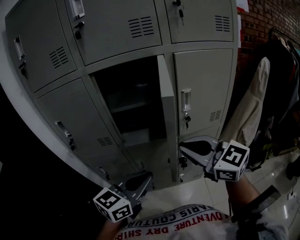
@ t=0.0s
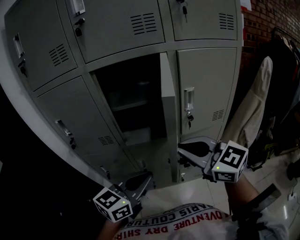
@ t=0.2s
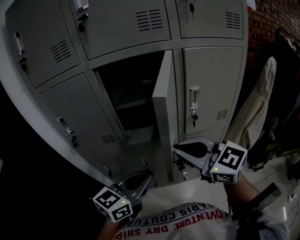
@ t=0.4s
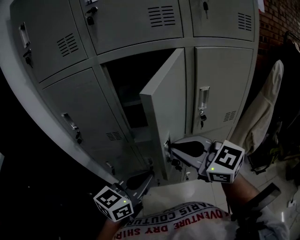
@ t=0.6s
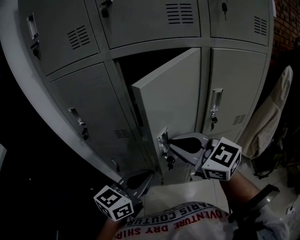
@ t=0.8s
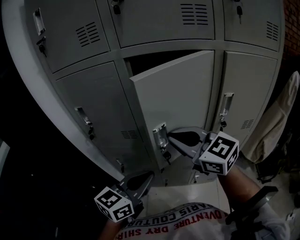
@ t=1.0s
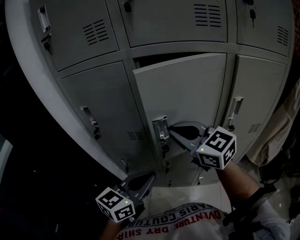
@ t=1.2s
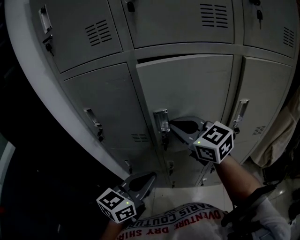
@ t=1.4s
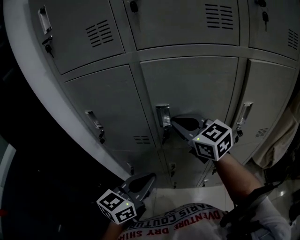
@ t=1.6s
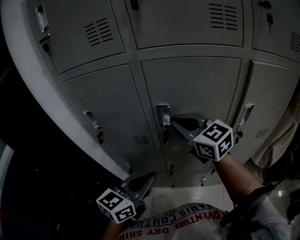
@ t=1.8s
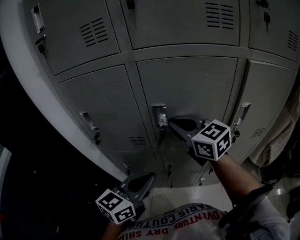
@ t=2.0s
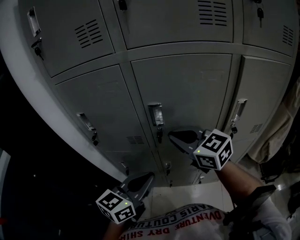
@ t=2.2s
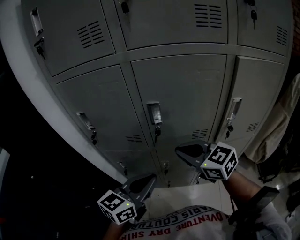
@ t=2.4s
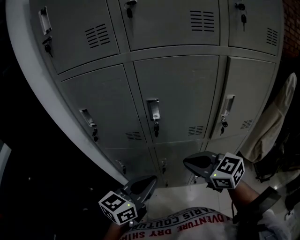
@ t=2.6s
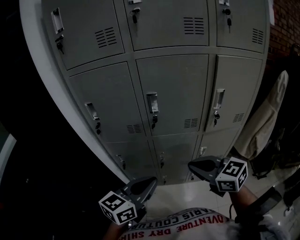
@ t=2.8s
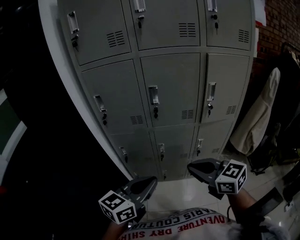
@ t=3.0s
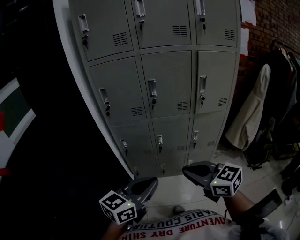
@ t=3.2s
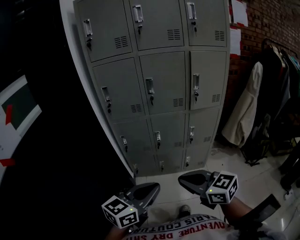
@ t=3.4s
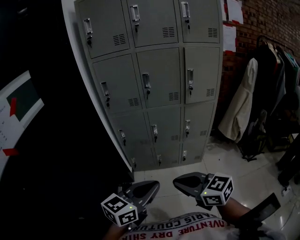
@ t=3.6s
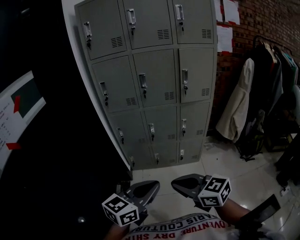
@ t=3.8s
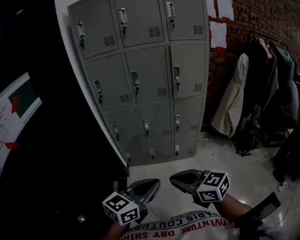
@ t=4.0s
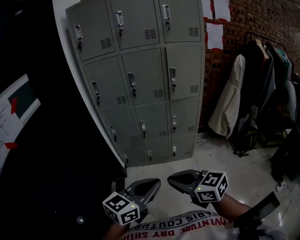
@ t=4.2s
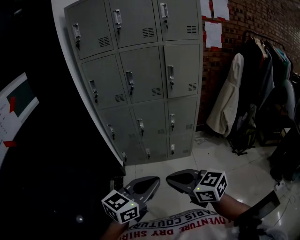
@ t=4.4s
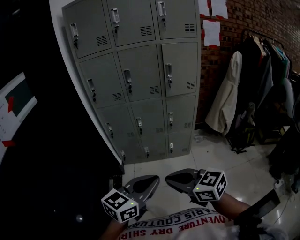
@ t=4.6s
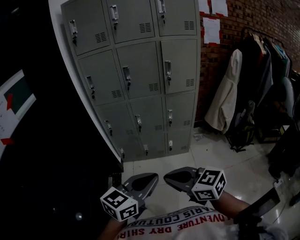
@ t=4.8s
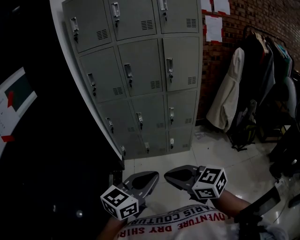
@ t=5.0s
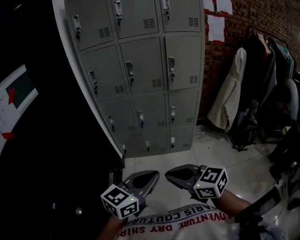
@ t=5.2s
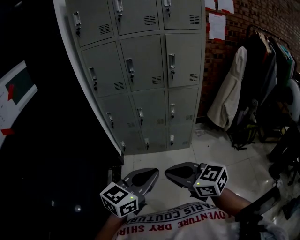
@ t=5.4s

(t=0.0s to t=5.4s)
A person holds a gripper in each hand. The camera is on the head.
t=0.0s - t=1.4s: The right gripper goes roughly 25 cm forward and to the left. Meanwhile the left gripper travels to the left and forward by some 15 cm.
t=1.4s - t=2.8s: The right gripper heads backward and downward, covering some 20 cm. The left gripper goes about 10 cm backward.
t=2.8s - t=4.0s: Both grippers move backward, approximately 40 cm.
t=4.0s - t=5.4s: The grippers stay close to where they were, moving slightly.

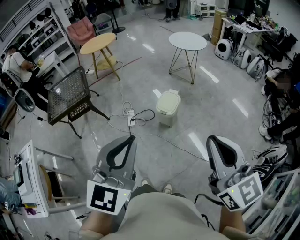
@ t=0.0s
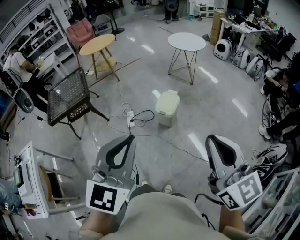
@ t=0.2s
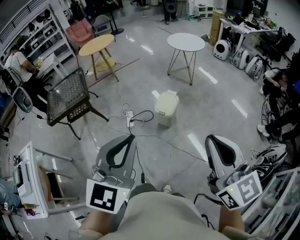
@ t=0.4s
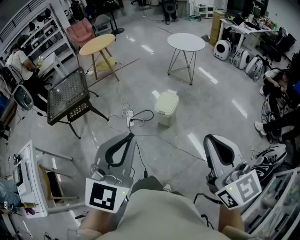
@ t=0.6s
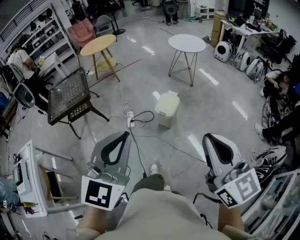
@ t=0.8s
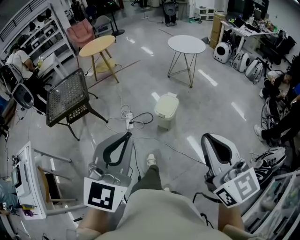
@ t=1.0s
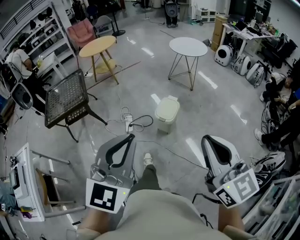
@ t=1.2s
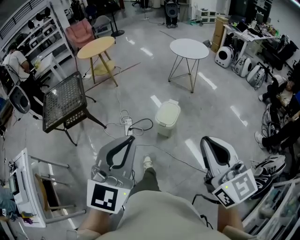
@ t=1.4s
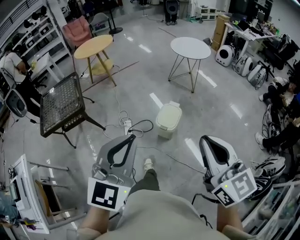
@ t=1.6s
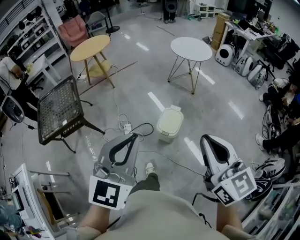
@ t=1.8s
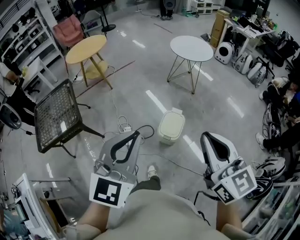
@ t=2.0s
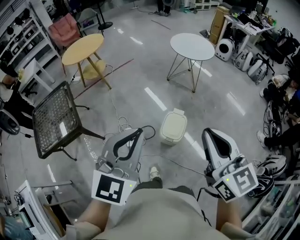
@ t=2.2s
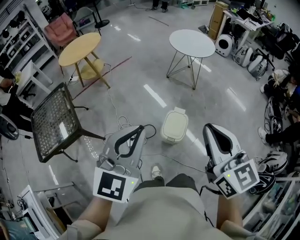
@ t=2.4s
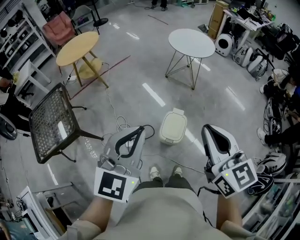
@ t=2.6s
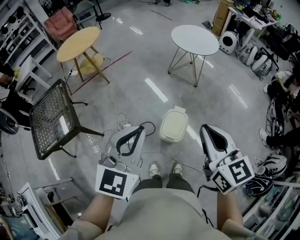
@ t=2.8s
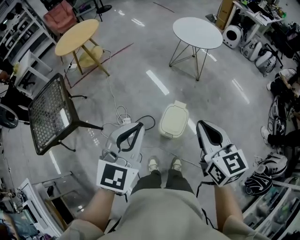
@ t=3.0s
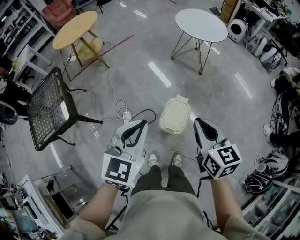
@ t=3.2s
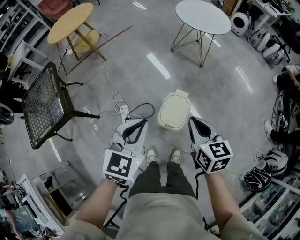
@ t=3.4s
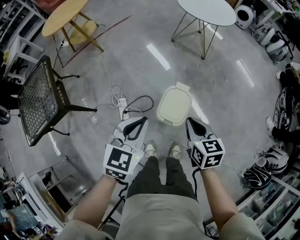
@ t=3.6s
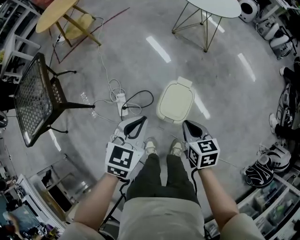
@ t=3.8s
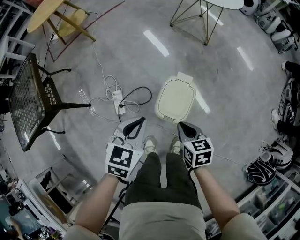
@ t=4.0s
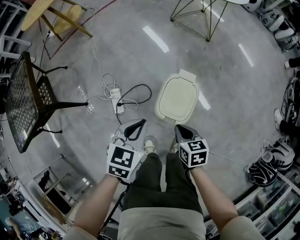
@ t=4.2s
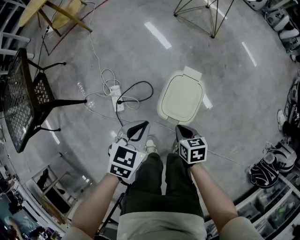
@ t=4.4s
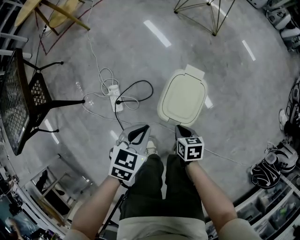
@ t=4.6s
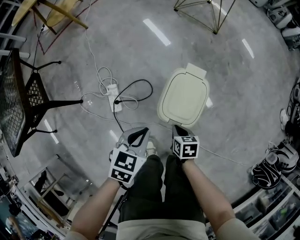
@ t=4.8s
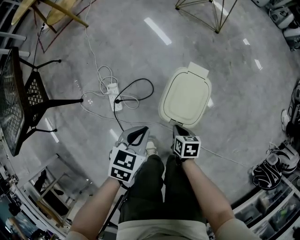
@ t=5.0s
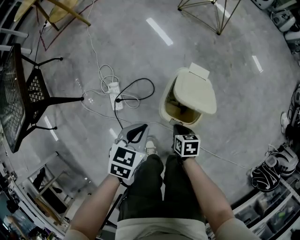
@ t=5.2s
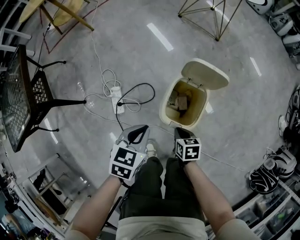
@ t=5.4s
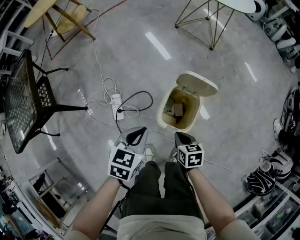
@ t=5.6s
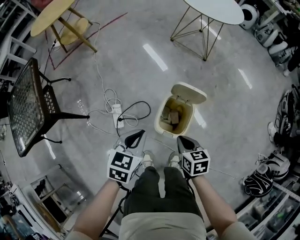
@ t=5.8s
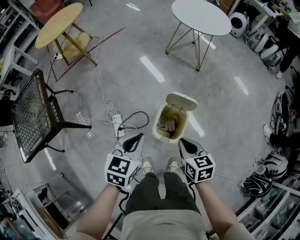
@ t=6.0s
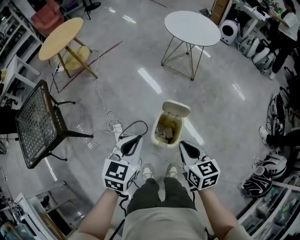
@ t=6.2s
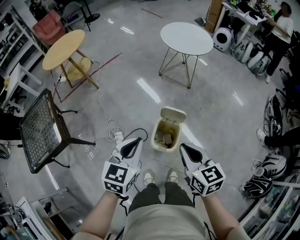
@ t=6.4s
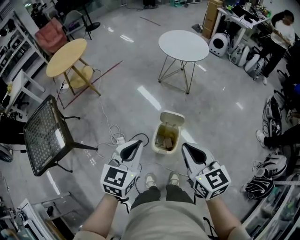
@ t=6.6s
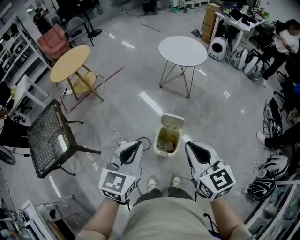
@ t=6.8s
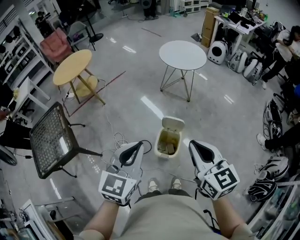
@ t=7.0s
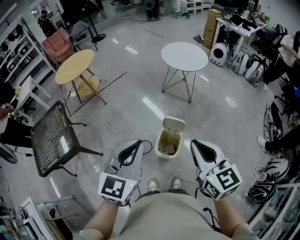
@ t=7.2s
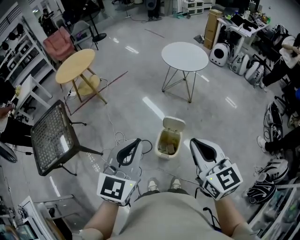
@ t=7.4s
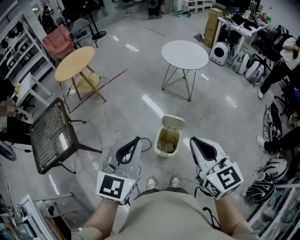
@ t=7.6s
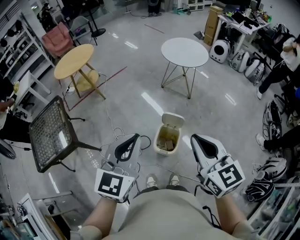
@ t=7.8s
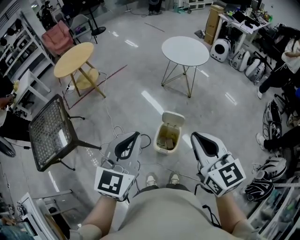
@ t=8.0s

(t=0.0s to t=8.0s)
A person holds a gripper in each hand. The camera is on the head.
t=0.0s - t=1.6s: Both grippers move forward, approximately 20 cm.
t=1.6s - t=3.2s: Both grippers travel together forward and downward, some 40 cm. The right gripper turns by about 30 degrees.
t=3.2s - t=4.8s: Both grippers travel together downward, some 50 cm. The right gripper tips its fingers downward by approximately 40 degrees. Meanwhile the left gripper changes its angle by some 30 degrees.
t=4.8s - t=6.4s: The grippers both shift upward by about 50 cm. The left gripper changes its angle by approximately 20 degrees. The right gripper tips its fingers upward by approximately 30 degrees.
t=6.4s - t=8.0s: Both grippers move upward, about 20 cm.

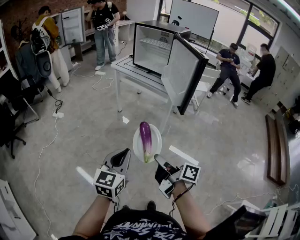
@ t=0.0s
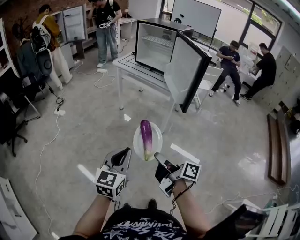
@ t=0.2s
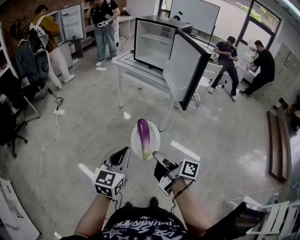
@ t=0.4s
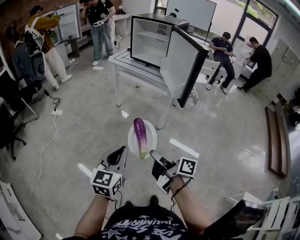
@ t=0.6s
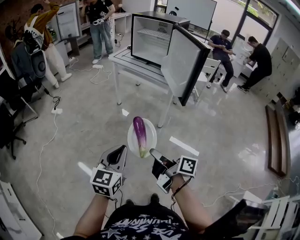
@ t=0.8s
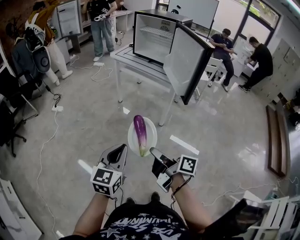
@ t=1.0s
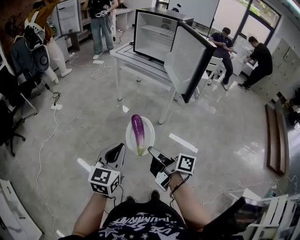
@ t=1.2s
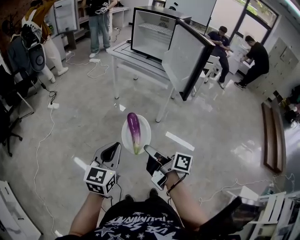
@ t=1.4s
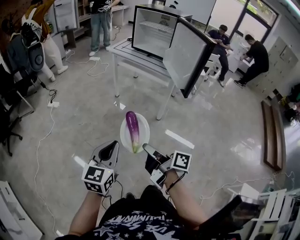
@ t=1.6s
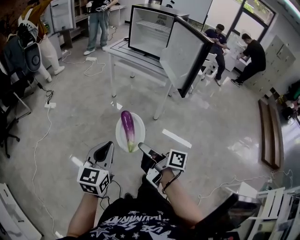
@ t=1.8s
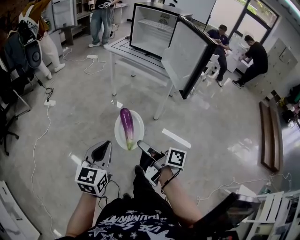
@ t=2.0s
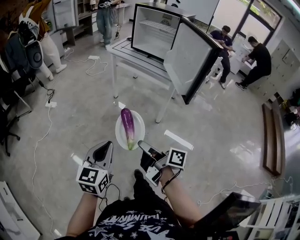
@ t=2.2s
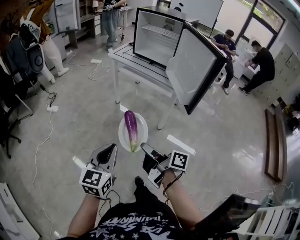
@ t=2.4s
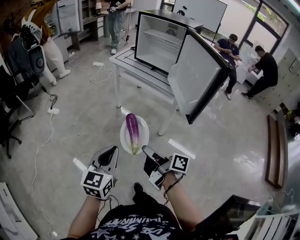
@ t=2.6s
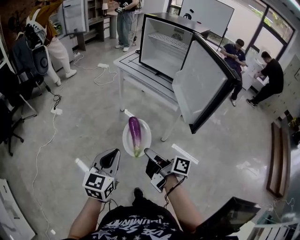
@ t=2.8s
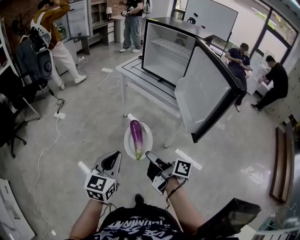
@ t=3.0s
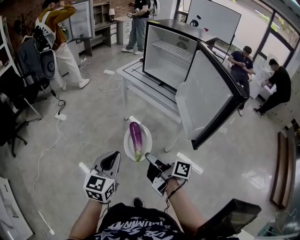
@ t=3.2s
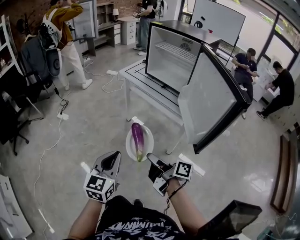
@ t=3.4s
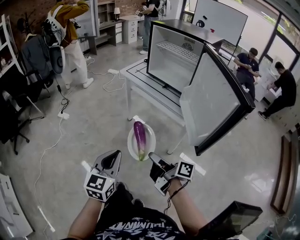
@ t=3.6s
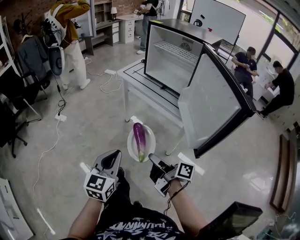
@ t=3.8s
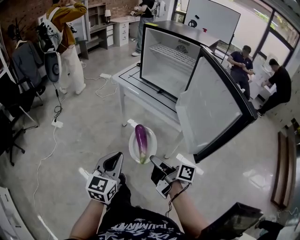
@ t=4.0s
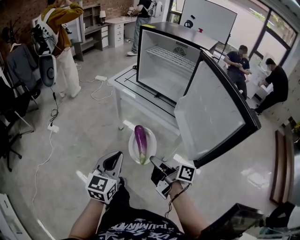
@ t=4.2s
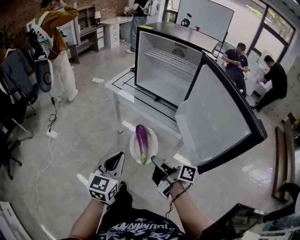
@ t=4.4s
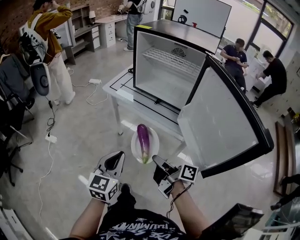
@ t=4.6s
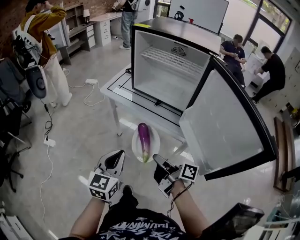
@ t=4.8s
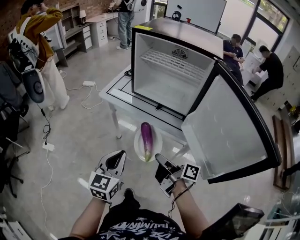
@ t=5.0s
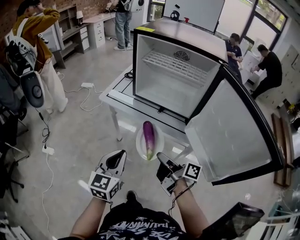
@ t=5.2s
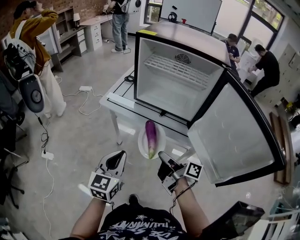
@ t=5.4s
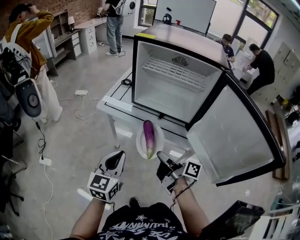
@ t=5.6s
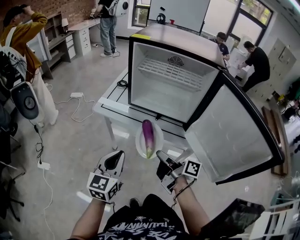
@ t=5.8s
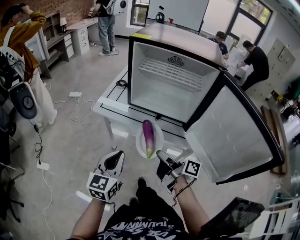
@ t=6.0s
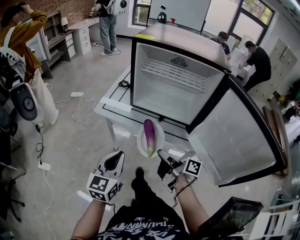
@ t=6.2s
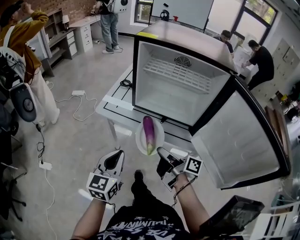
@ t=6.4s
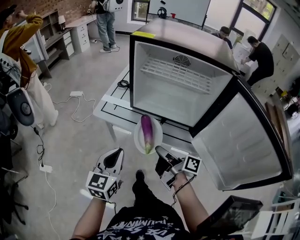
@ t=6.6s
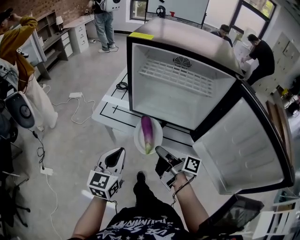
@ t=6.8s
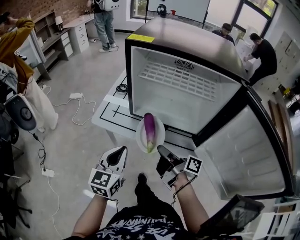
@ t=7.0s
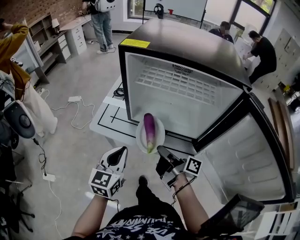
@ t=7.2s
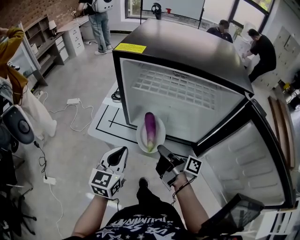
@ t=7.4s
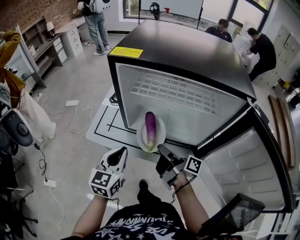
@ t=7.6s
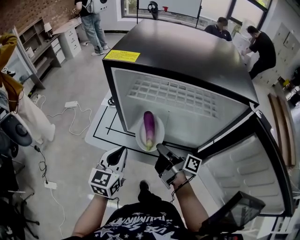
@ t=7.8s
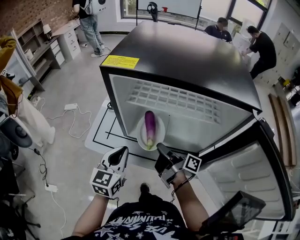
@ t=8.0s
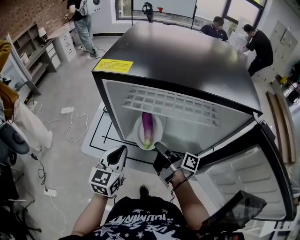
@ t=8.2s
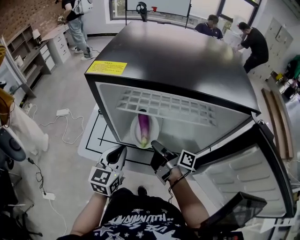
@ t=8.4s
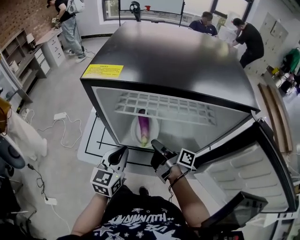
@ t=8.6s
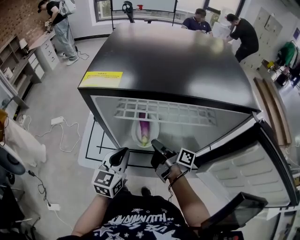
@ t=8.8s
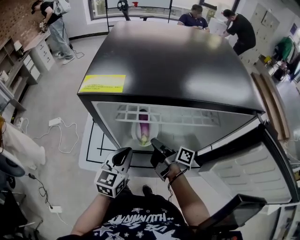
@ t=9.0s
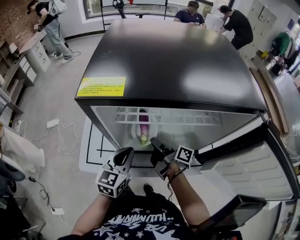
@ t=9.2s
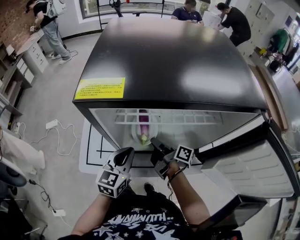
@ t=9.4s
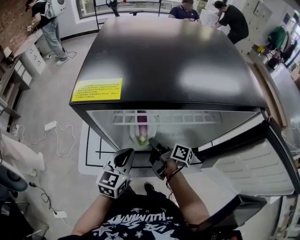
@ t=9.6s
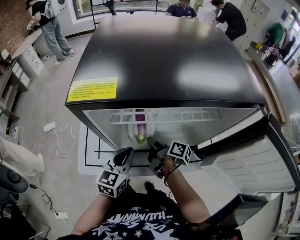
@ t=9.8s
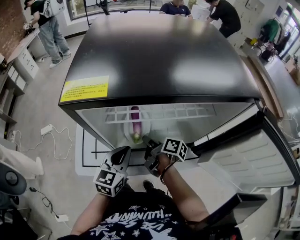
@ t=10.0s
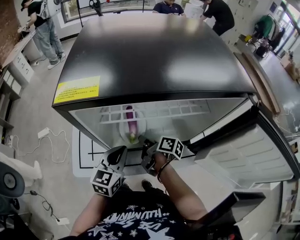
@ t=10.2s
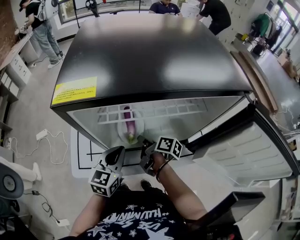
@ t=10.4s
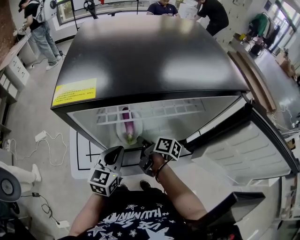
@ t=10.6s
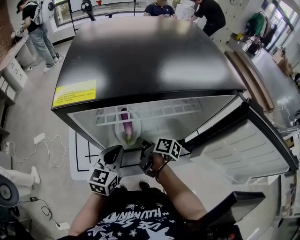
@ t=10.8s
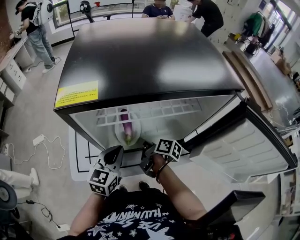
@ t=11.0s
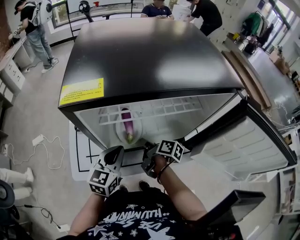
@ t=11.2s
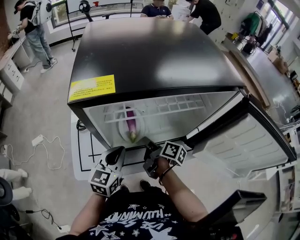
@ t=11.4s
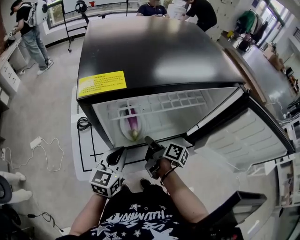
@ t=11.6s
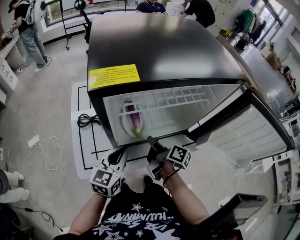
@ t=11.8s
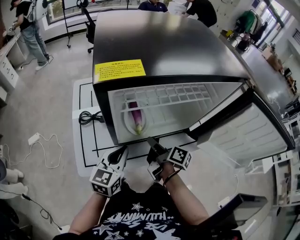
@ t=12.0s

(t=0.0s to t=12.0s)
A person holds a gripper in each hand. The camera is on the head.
t=0.0s - t=1.6s: The left gripper ends up approximately 10 cm from where it was.
t=1.6s - t=3.0s: The left gripper moves roughly 20 cm.
t=3.0s - t=4.4s: The left gripper ends up approximately 20 cm from where it was.
t=4.4s - t=6.0s: The left gripper ends up roughly 25 cm from where it was.
t=6.0s - t=7.6s: The left gripper shifts by roughly 25 cm.
t=7.6s - t=9.0s: The left gripper moves some 15 cm.
t=10.4s - t=12.0s: The left gripper shifts by about 5 cm.
